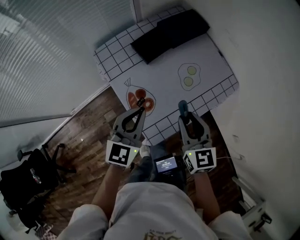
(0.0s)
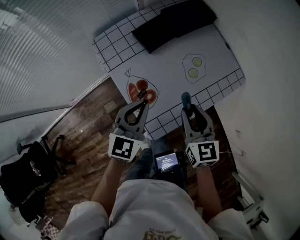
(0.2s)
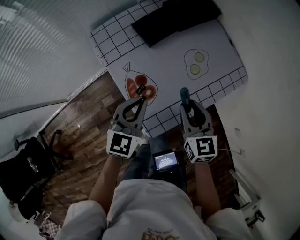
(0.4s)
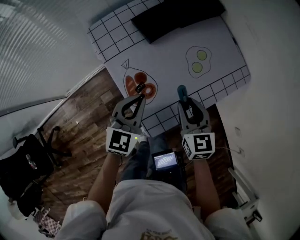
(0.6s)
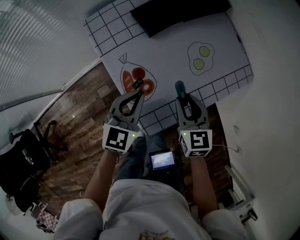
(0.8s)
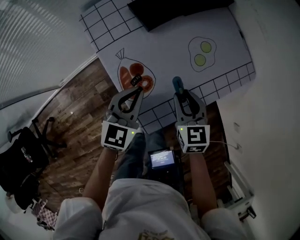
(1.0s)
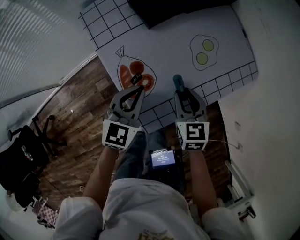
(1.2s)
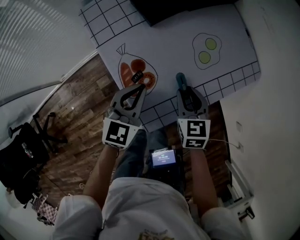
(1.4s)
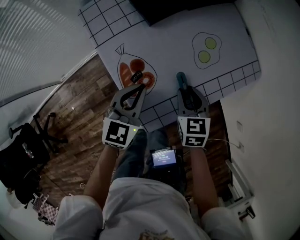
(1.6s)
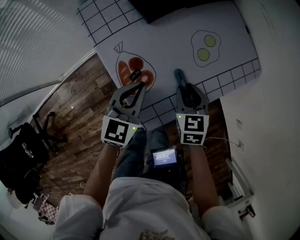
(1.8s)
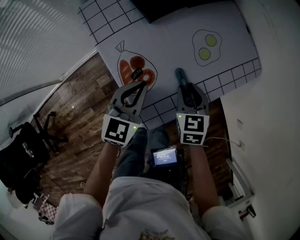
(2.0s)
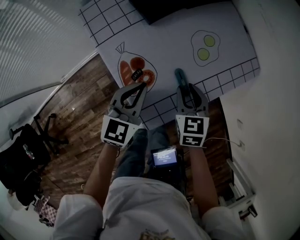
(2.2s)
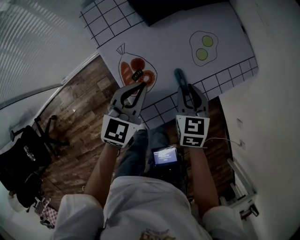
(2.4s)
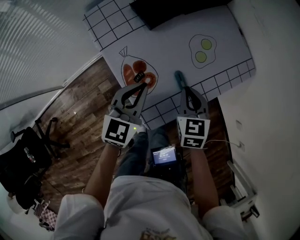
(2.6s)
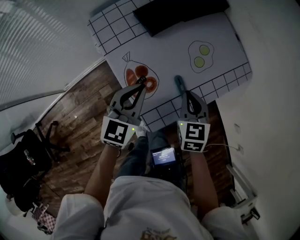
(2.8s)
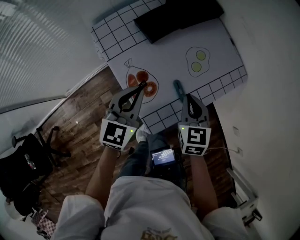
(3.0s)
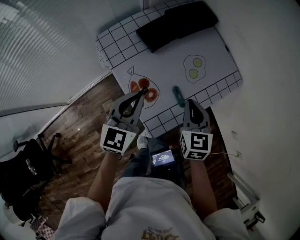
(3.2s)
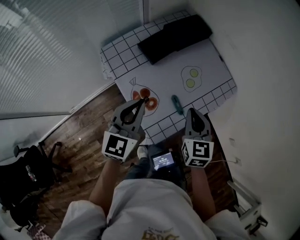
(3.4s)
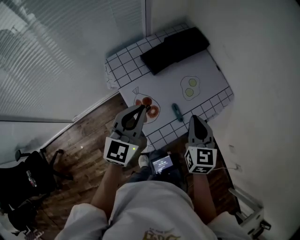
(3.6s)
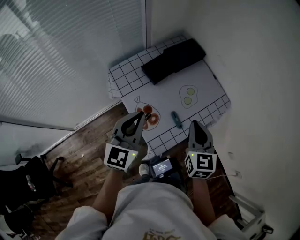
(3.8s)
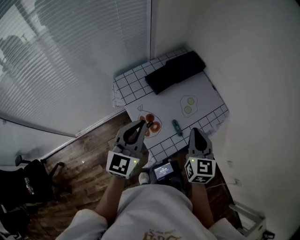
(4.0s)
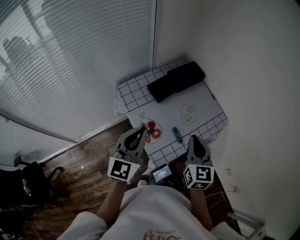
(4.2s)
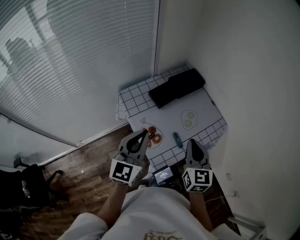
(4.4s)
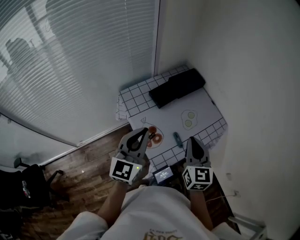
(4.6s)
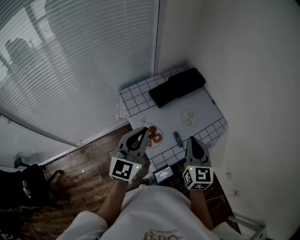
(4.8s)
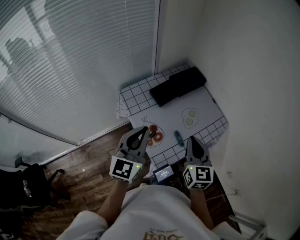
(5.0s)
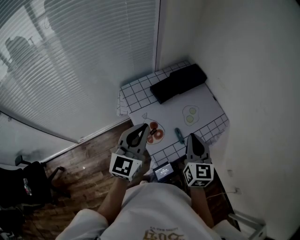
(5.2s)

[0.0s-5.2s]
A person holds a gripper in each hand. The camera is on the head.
0.0s to 1.8s: The grippers both shift downward by roughly 15 cm. The right gripper changes its angle by roughly 20 degrees.
1.8s to 3.4s: Both grippers move upward, about 15 cm. The right gripper turns by roughly 20 degrees, and closes.
3.4s to 5.2s: Both grippers move upward, roughly 10 cm.

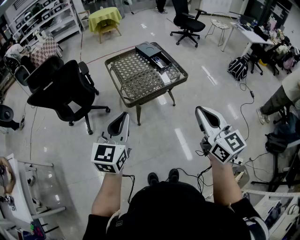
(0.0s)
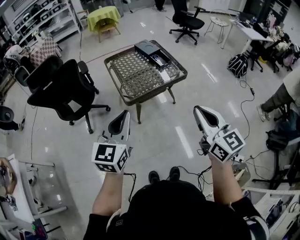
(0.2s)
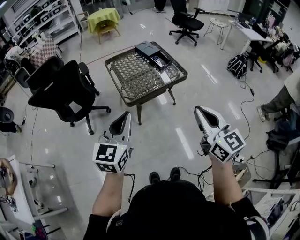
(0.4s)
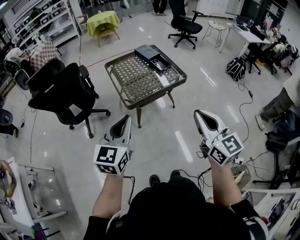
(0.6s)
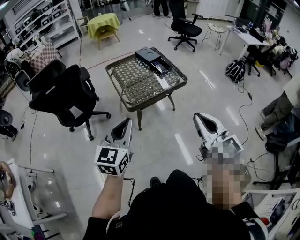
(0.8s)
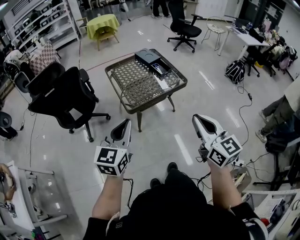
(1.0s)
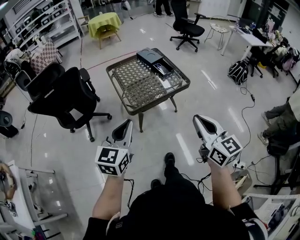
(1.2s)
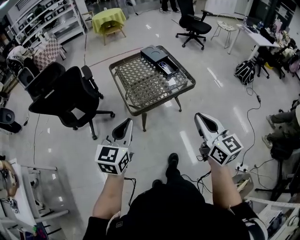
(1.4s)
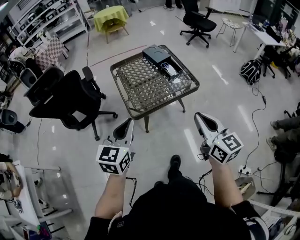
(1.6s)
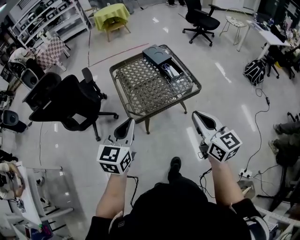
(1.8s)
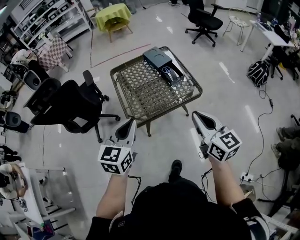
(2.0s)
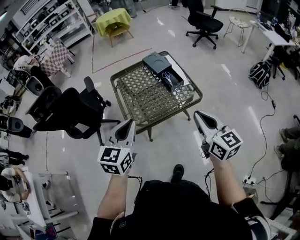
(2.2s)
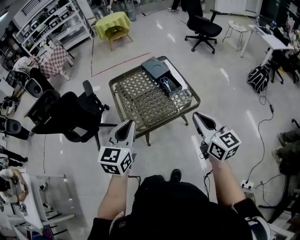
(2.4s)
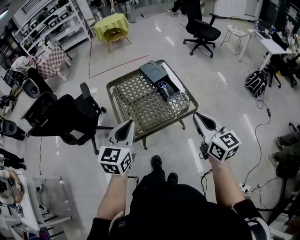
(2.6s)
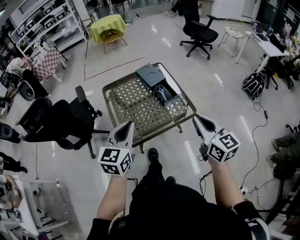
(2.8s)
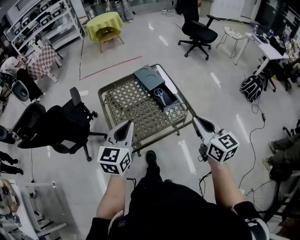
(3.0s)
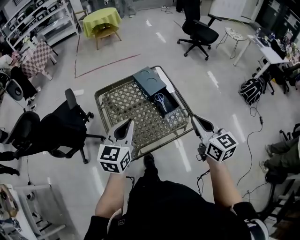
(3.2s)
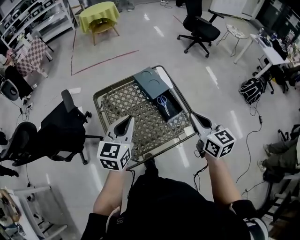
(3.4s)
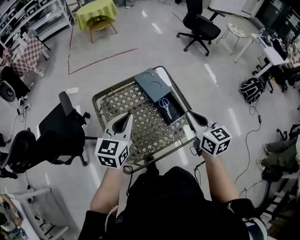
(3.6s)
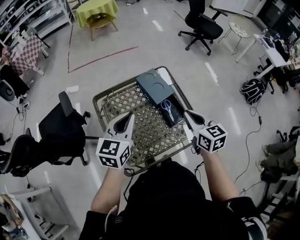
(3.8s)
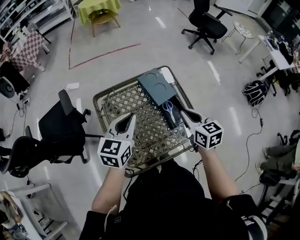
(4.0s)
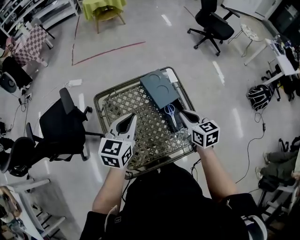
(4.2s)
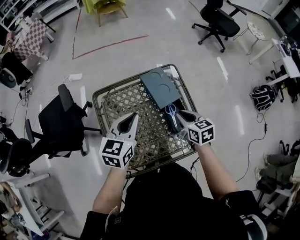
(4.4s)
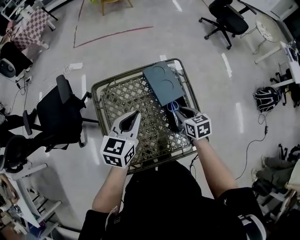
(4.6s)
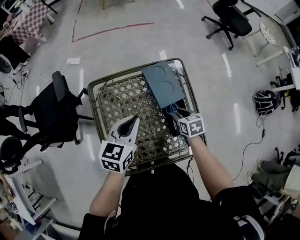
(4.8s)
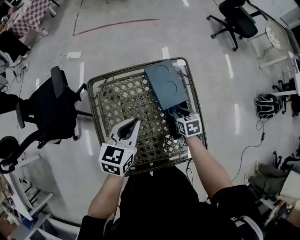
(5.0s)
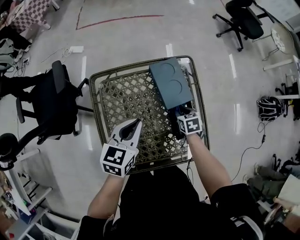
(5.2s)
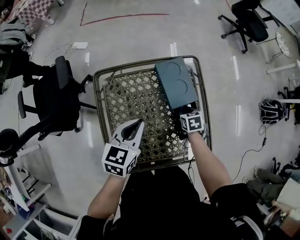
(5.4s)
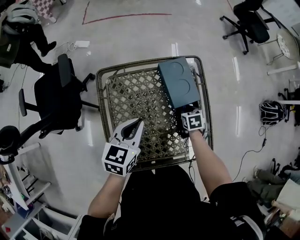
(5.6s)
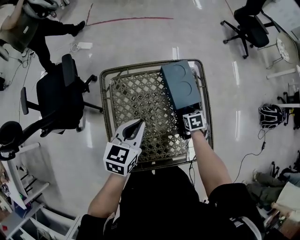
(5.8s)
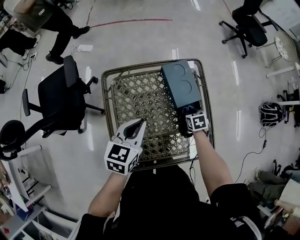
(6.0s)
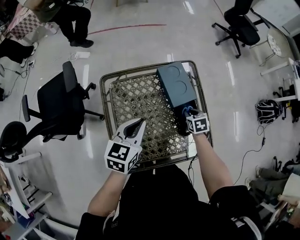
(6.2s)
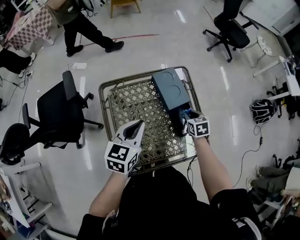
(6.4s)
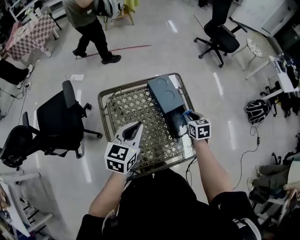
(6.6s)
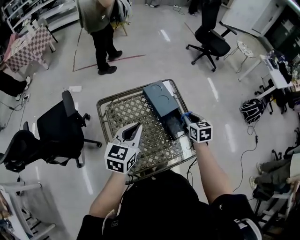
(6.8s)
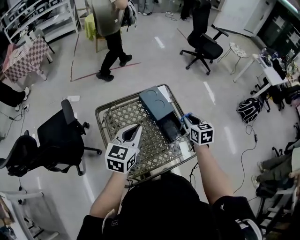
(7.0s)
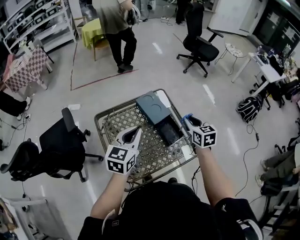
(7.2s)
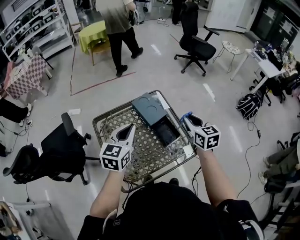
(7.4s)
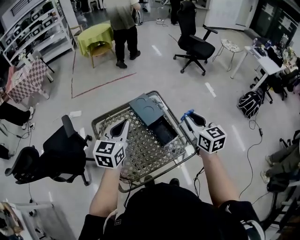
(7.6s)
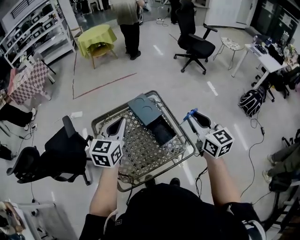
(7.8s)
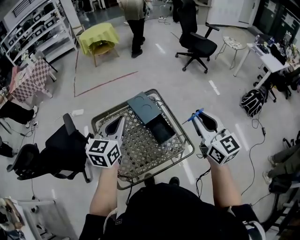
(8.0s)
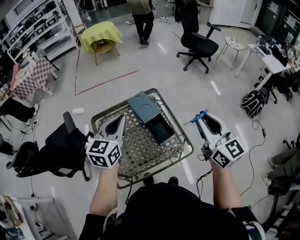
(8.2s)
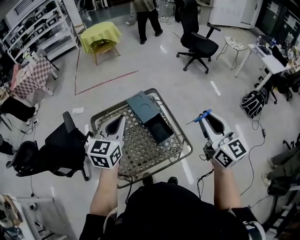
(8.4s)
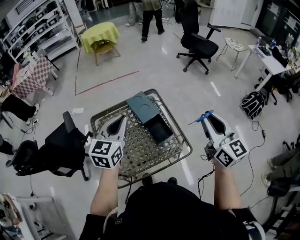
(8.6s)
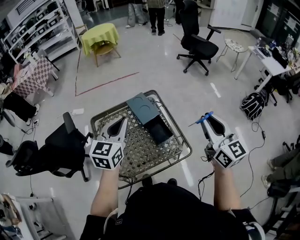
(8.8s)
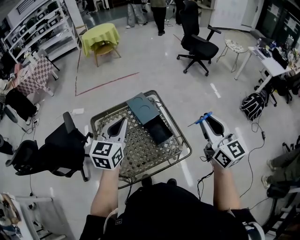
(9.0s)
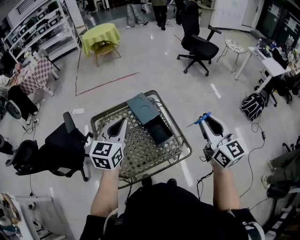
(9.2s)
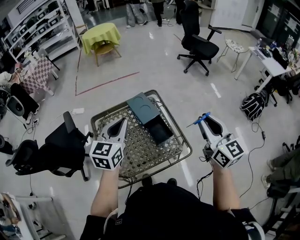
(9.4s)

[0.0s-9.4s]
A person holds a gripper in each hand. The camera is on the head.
0.0s to 1.6s: The right gripper moves forward and downward, about 15 cm, while the left gripper moves forward, approximately 10 cm.
1.6s to 3.2s: The grippers both shift forward by approximately 30 cm.
3.2s to 4.8s: The left gripper goes some 25 cm forward and downward; the right gripper heads downward and forward, covering about 40 cm, tilts its fingers about 40 degrees downward, and opens up.
6.2s to 7.8s: The right gripper is displaced upward by approximately 40 cm, and points its fingers about 50 degrees further upward. Meanwhile the left gripper moves upward, roughly 15 cm.
7.8s to 9.4s: The right gripper shifts about 5 cm to the right.

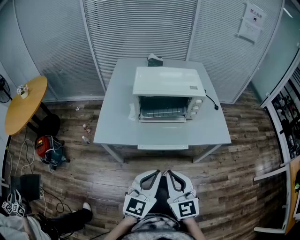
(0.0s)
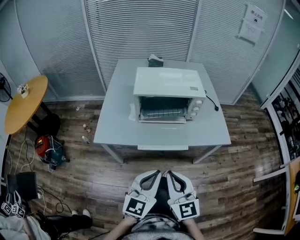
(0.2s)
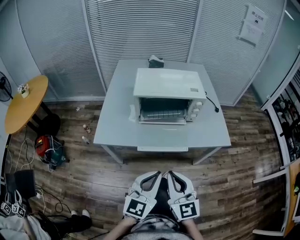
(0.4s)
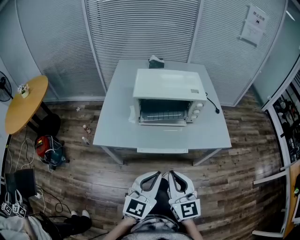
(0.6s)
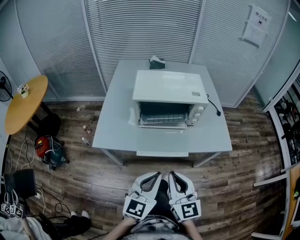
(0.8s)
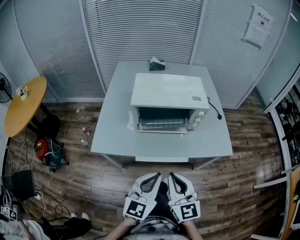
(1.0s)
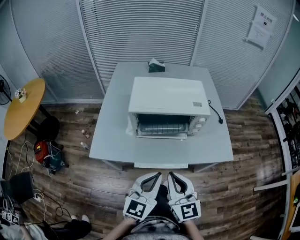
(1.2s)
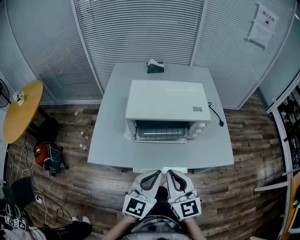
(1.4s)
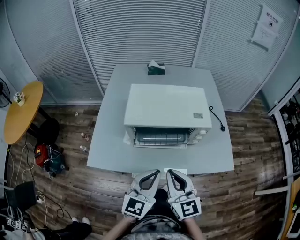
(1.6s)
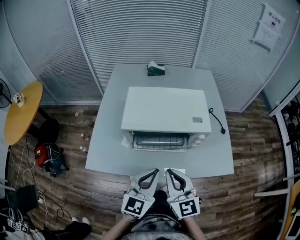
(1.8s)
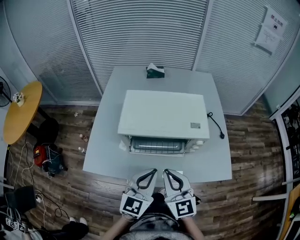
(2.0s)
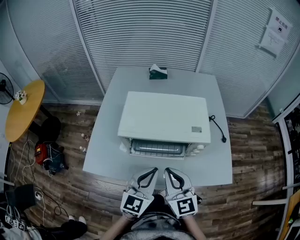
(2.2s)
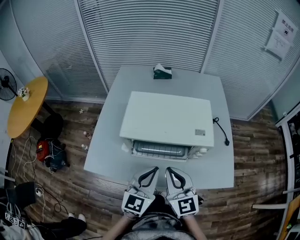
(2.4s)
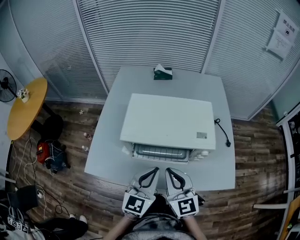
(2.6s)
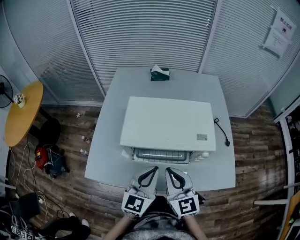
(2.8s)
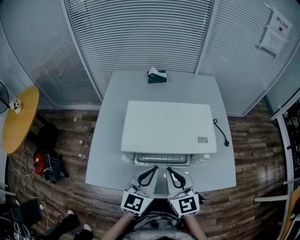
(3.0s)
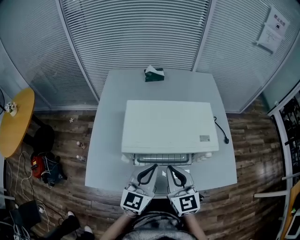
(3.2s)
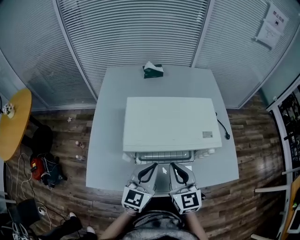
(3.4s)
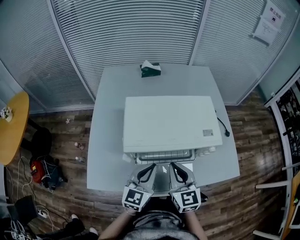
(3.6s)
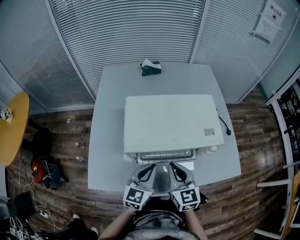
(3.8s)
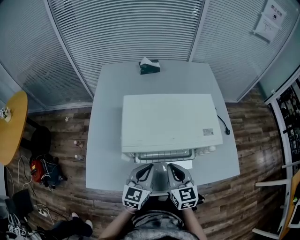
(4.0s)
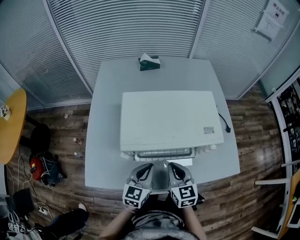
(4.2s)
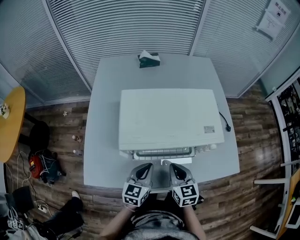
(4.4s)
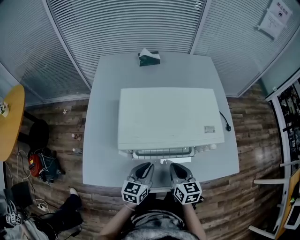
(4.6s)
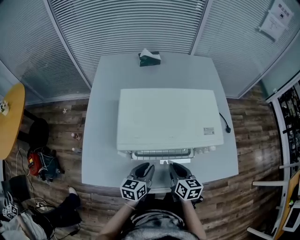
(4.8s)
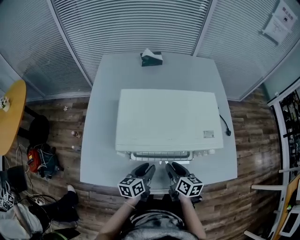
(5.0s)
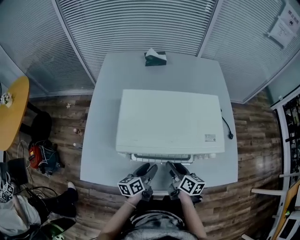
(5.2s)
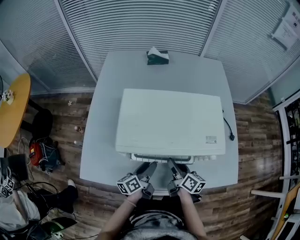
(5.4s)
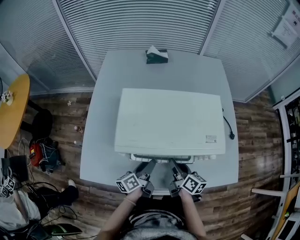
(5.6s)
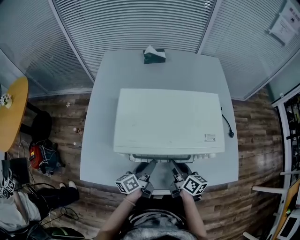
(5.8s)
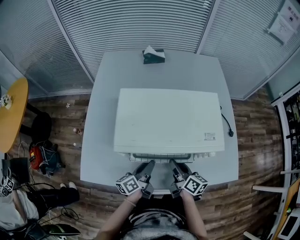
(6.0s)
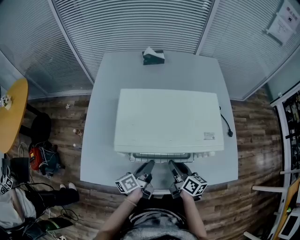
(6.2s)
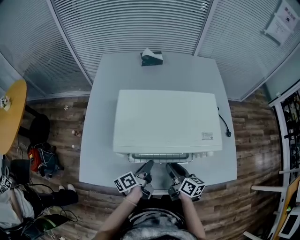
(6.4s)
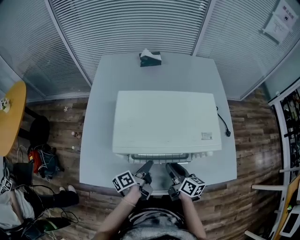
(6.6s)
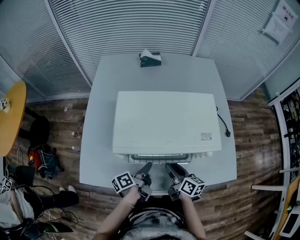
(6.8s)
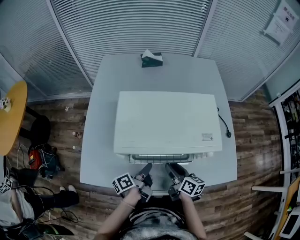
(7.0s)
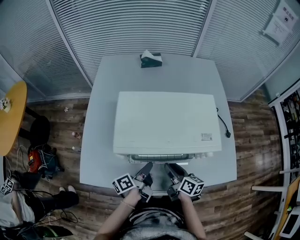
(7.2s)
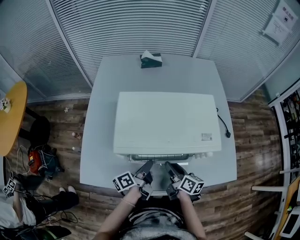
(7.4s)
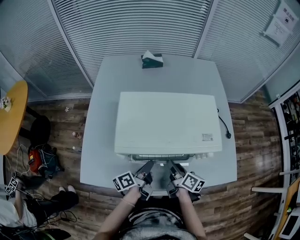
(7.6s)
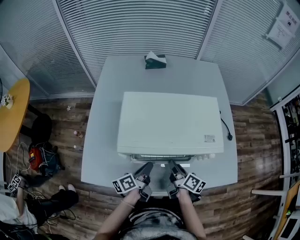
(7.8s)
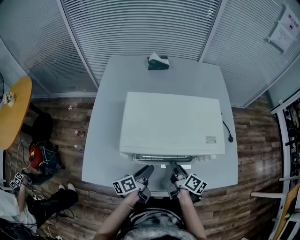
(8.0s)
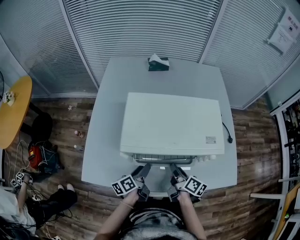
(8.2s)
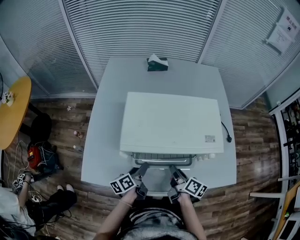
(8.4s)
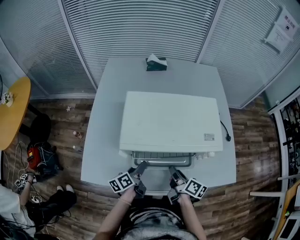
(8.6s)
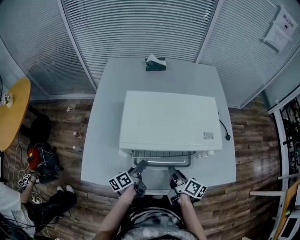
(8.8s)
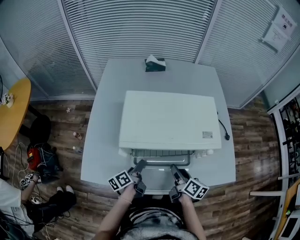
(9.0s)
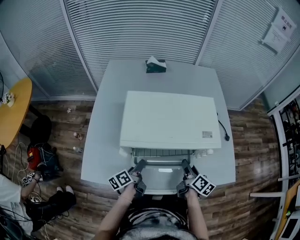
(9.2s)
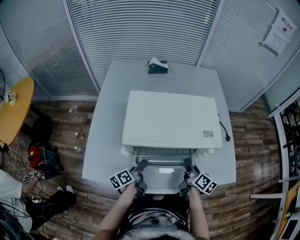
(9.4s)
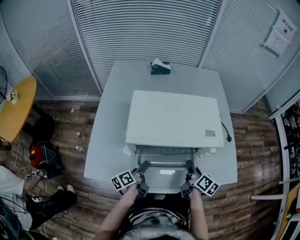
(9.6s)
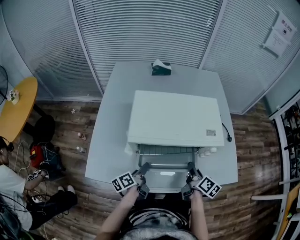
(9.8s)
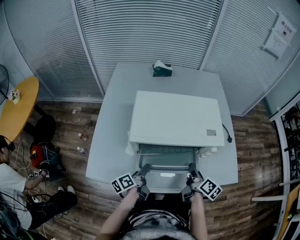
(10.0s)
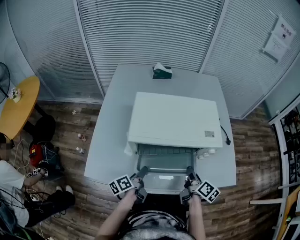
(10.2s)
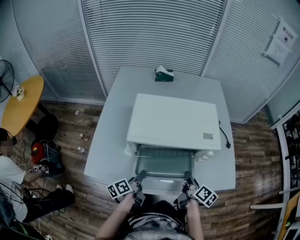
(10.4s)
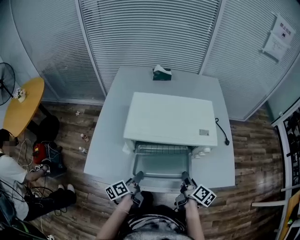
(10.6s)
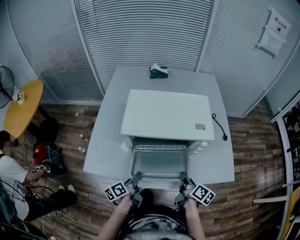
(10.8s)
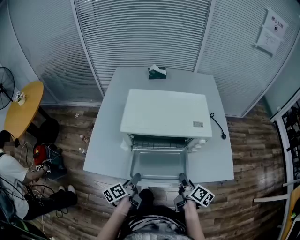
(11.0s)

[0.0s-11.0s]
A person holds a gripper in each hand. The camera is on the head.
0.0s to 1.6s: Both grippers travel together forward, approximately 20 cm.
1.6s to 3.2s: The two grippers go some 15 cm forward.
3.2s to 4.8s: Both grippers move downward, roughly 20 cm. The right gripper rotates roughly 40 degrees; the left gripper turns by some 30 degrees.
4.8s to 6.2s: The left gripper twists roughly 40 degrees counterclockwise, seen from behind, while the right gripper changes its angle by approximately 20 degrees.
6.2s to 7.8s: There are only small adjustments of the grippers.
7.8s to 9.4s: The left gripper changes place by some 5 cm. Meanwhile the right gripper is displaced to the right by about 5 cm.
9.4s to 11.0s: The grippers both shift backward by some 15 cm.
